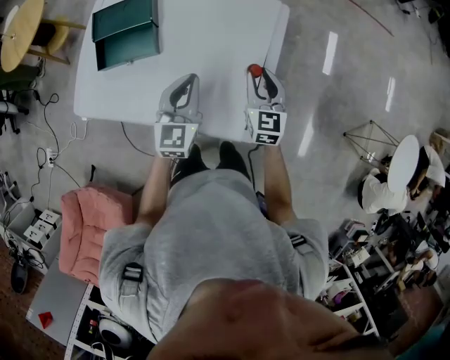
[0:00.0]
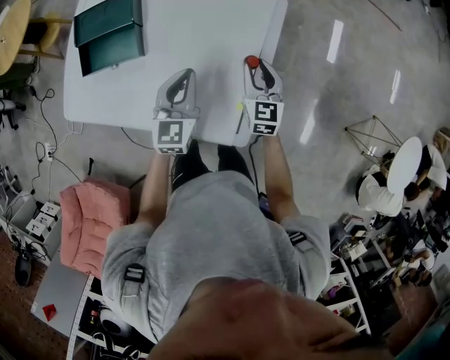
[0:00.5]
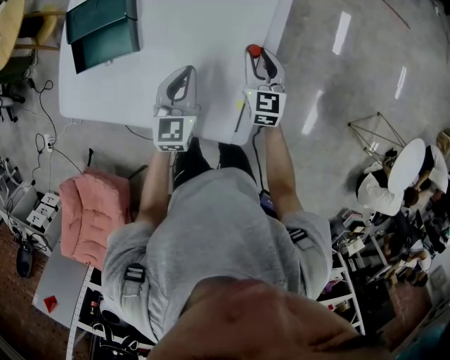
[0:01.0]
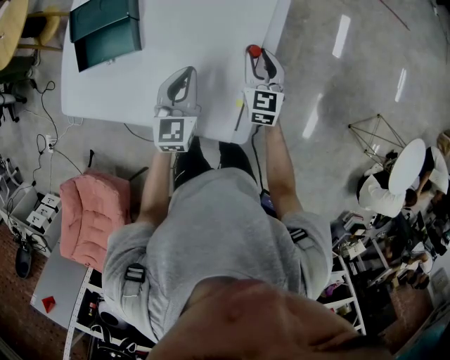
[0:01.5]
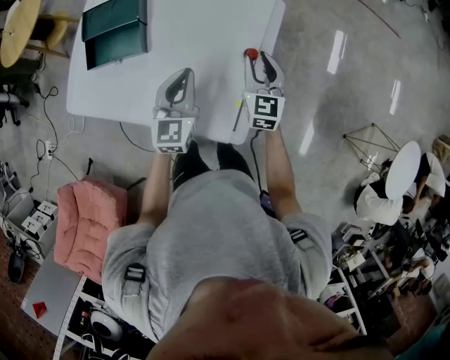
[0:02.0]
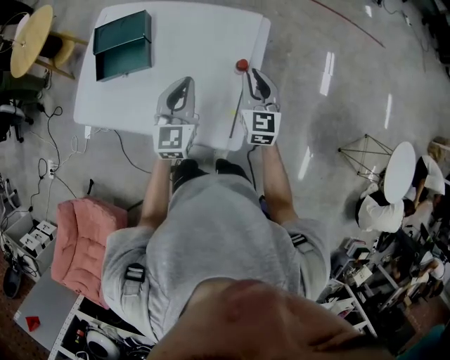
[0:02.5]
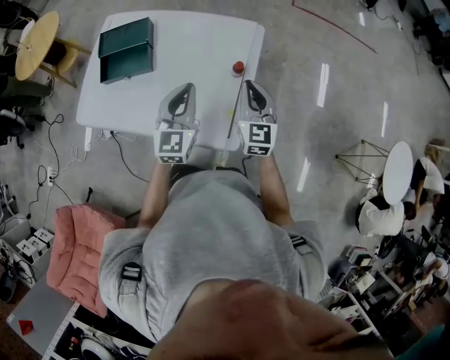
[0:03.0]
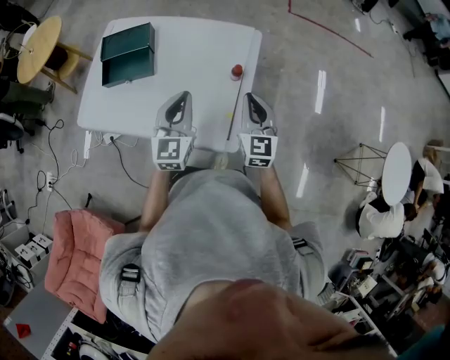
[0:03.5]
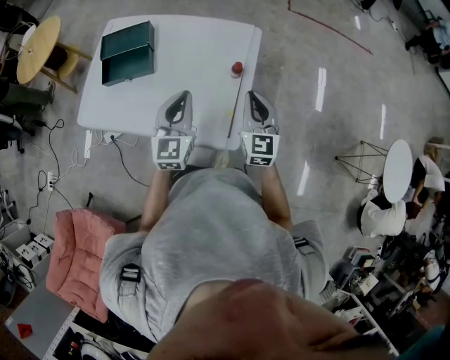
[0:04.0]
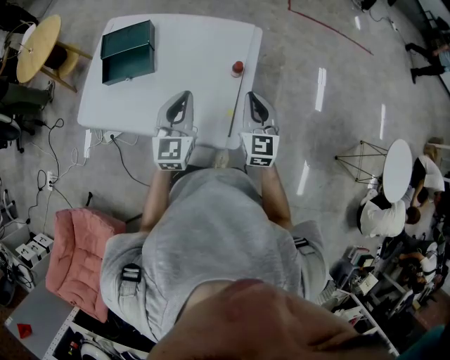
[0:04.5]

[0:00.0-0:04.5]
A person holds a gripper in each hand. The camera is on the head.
0.0 to 2.0 s: The right gripper travels forward by roughly 5 cm, and reaches approximately 10 cm downward, then returns.
2.0 to 4.5 s: Both grippers move backward and upward, about 15 cm. The right gripper closes its fingers.

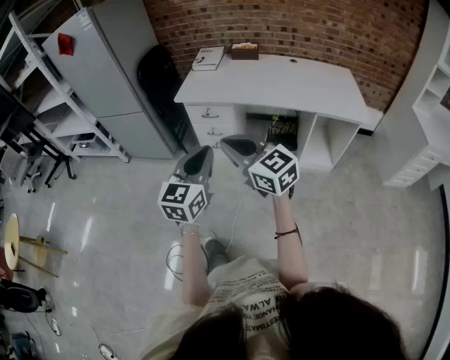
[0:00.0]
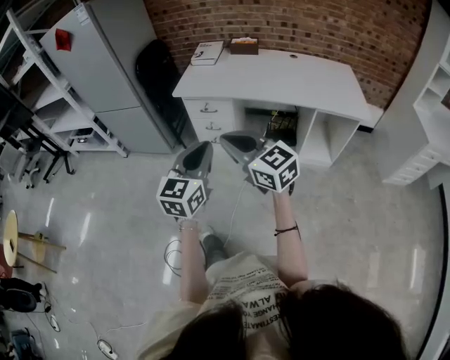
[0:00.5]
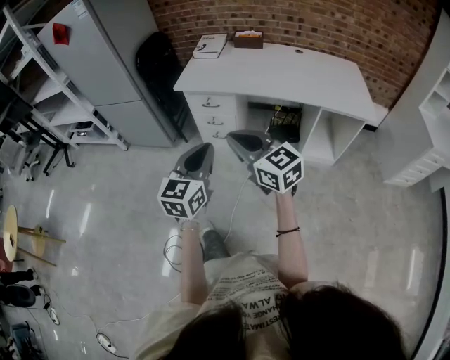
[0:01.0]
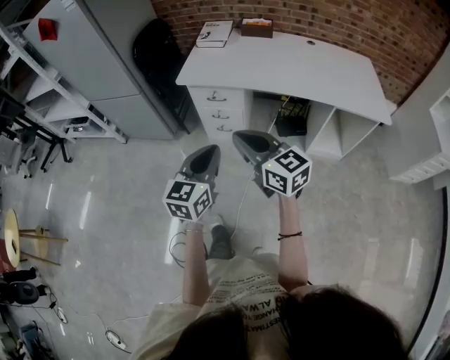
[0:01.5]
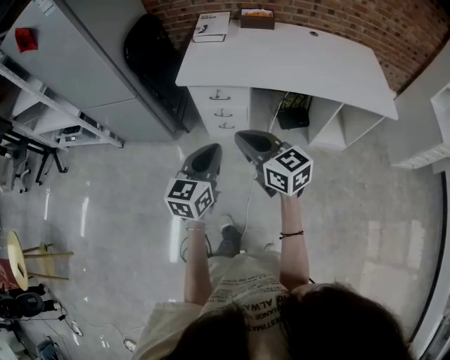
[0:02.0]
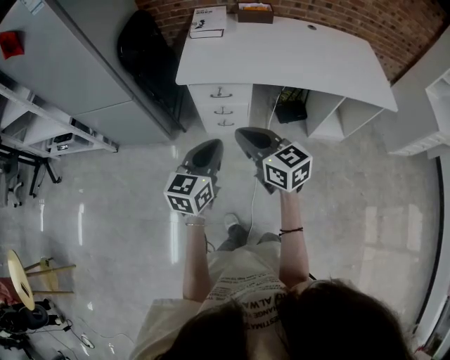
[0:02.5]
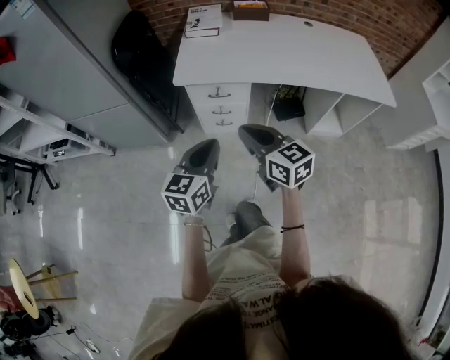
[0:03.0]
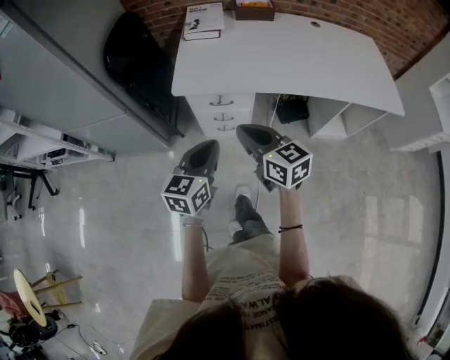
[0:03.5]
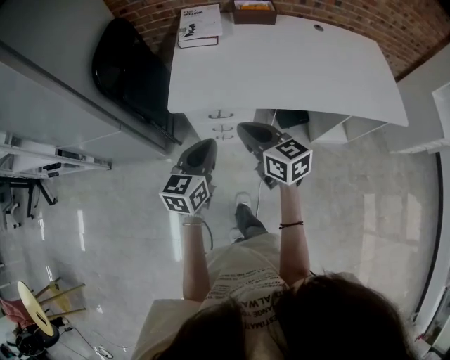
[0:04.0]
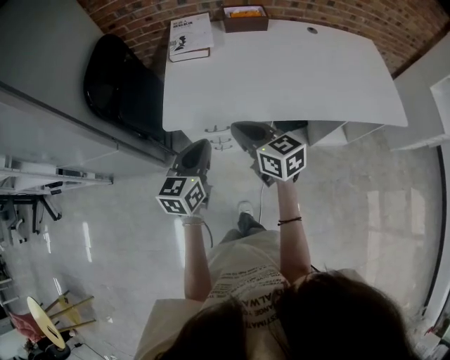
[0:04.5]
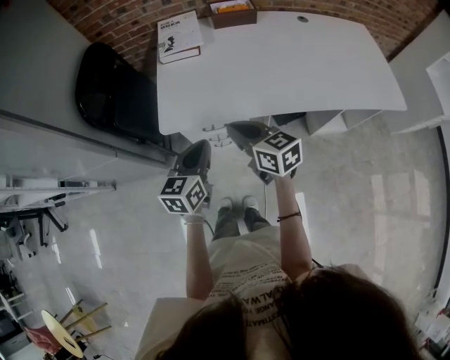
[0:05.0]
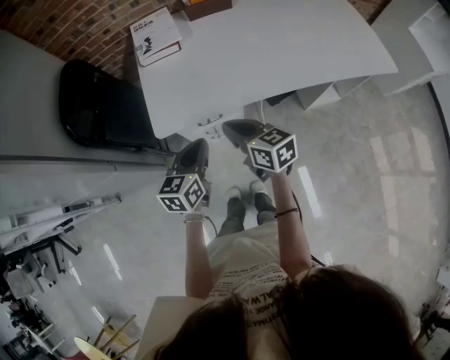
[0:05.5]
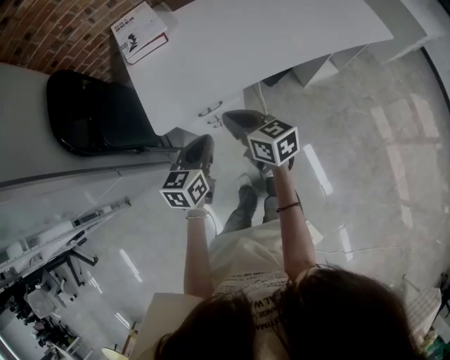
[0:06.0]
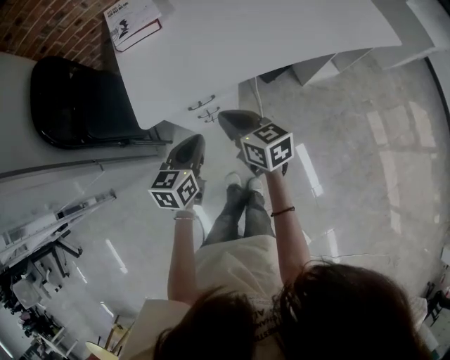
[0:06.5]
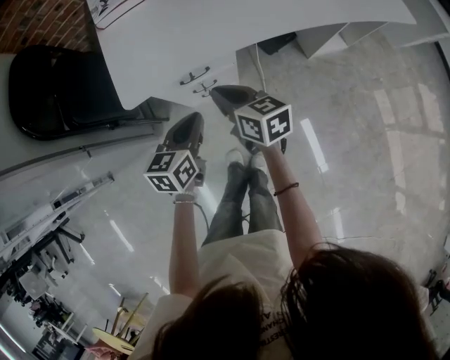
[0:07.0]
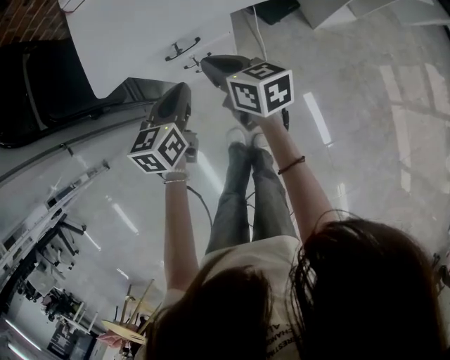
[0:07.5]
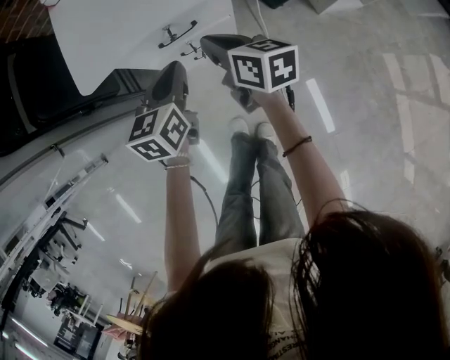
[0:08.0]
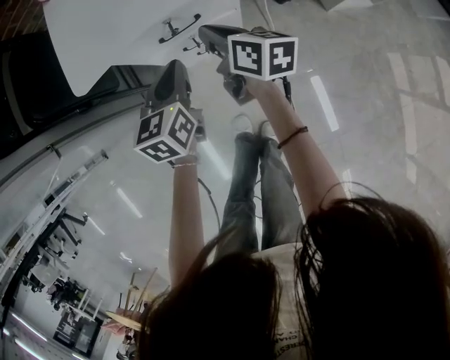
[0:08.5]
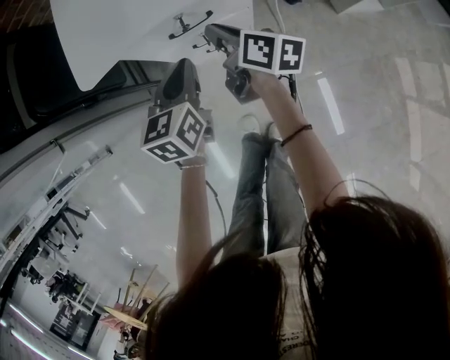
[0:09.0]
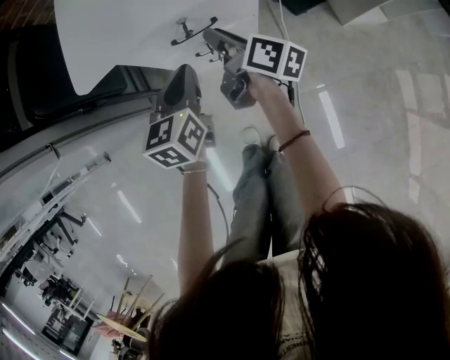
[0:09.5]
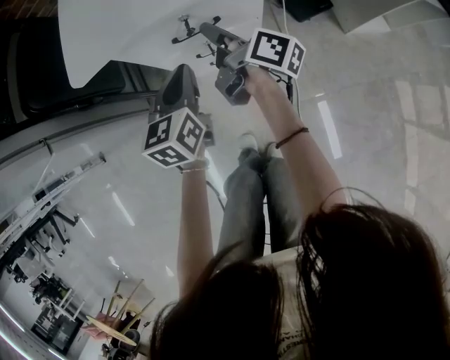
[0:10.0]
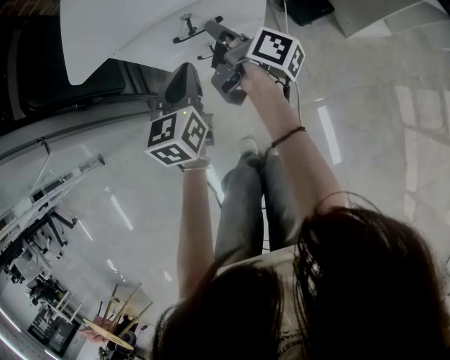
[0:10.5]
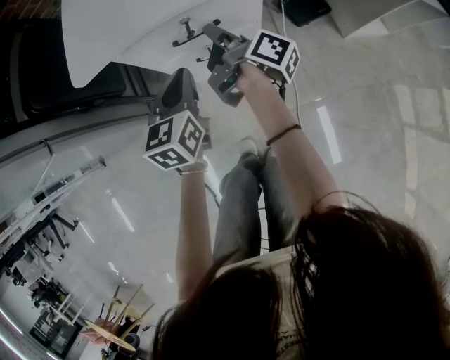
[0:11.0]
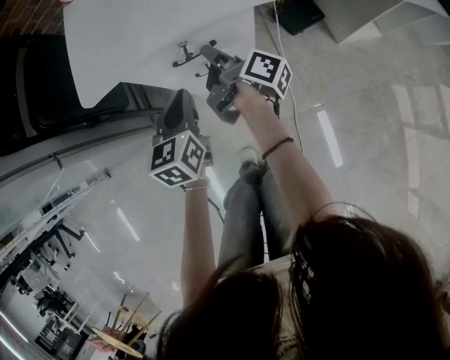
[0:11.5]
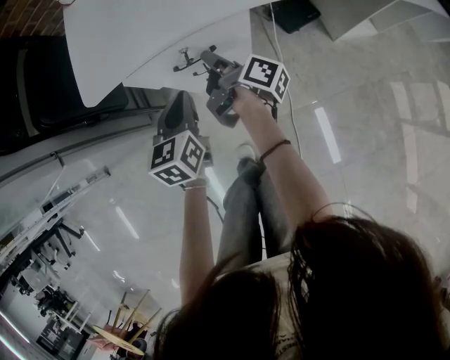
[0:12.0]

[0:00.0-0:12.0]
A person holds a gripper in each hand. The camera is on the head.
0.0 to 2.0 s: The right gripper heads forward, covering roughly 20 cm; the left gripper heads forward and downward, covering about 25 cm.
2.0 to 4.0 s: Both grippers move forward, roughly 25 cm.
4.0 to 6.0 s: Both grippers move downward and forward, approximately 10 cm. The right gripper swivels some 20 degrees, while the left gripper swivels roughly 20 degrees.
6.0 to 8.0 s: The two grippers go about 20 cm downward.
8.0 to 10.0 s: The right gripper is displaced downward and forward by roughly 10 cm, turns by some 40 degrees, and opens up. Meanwhile the left gripper heads downward, covering some 5 cm.
10.0 to 12.0 s: There are only small adjustments of the grippers.

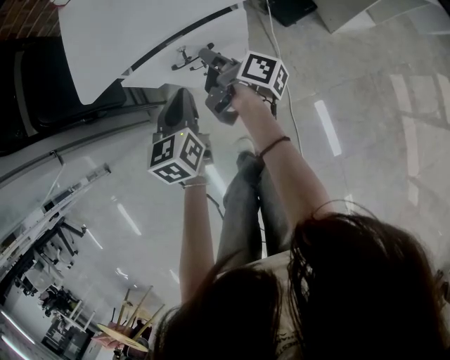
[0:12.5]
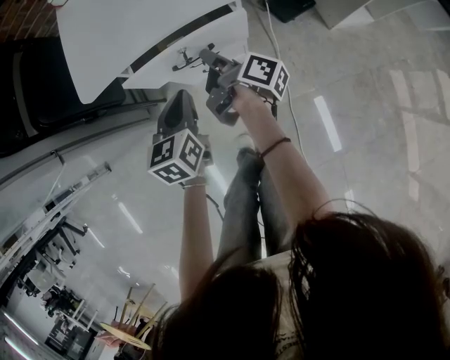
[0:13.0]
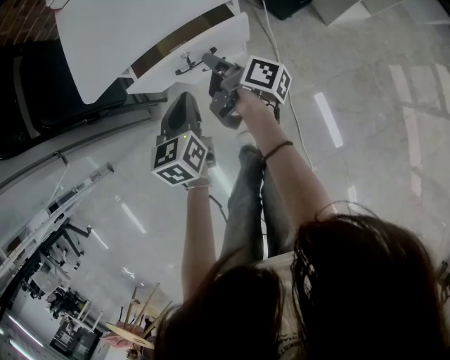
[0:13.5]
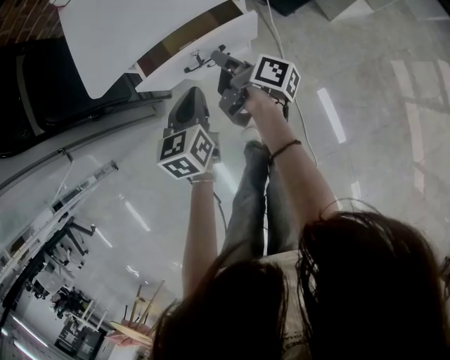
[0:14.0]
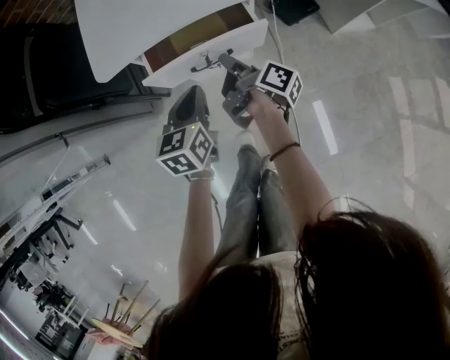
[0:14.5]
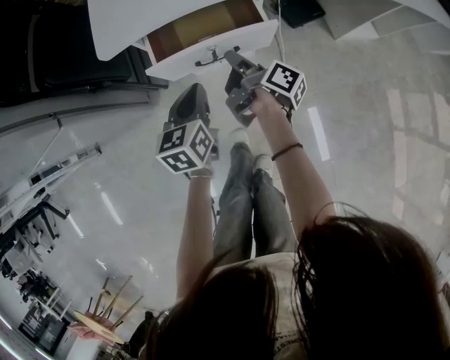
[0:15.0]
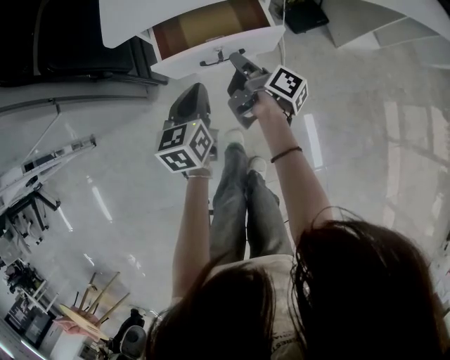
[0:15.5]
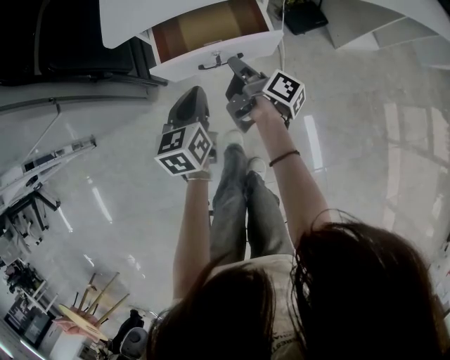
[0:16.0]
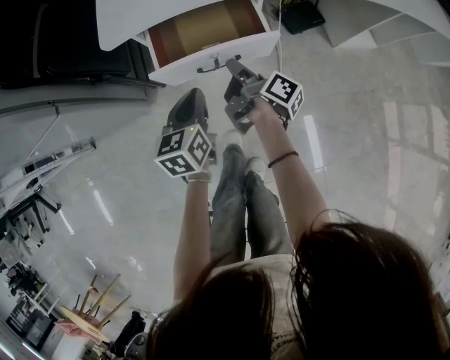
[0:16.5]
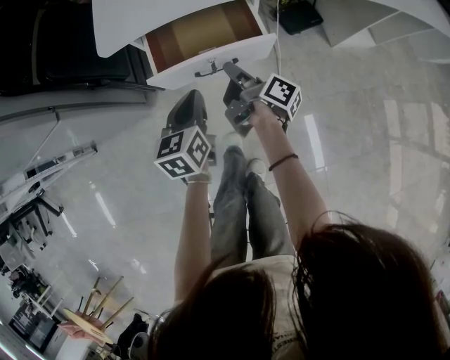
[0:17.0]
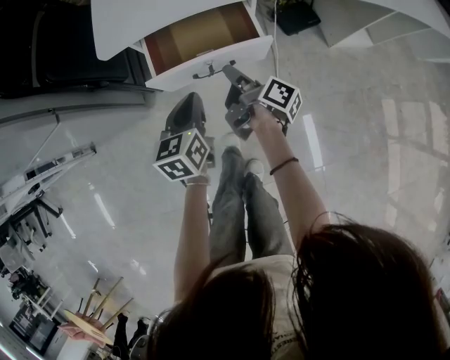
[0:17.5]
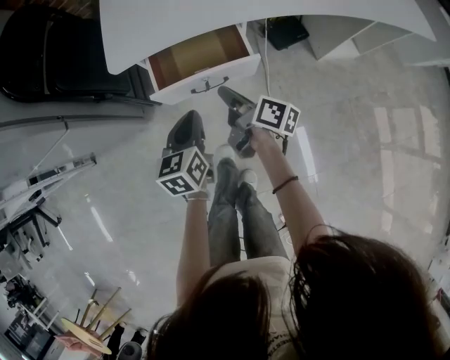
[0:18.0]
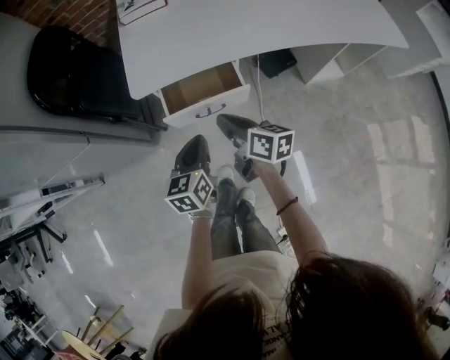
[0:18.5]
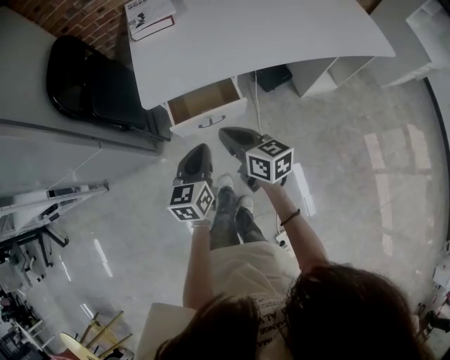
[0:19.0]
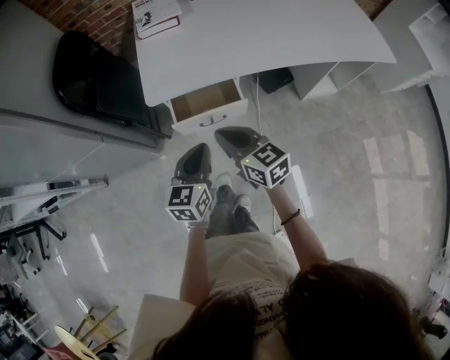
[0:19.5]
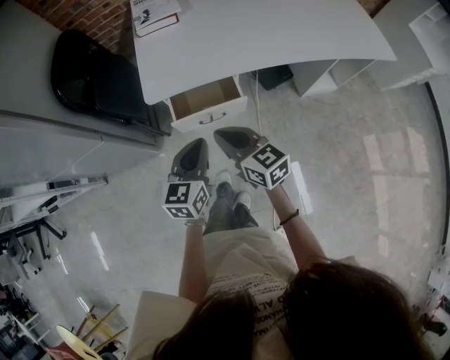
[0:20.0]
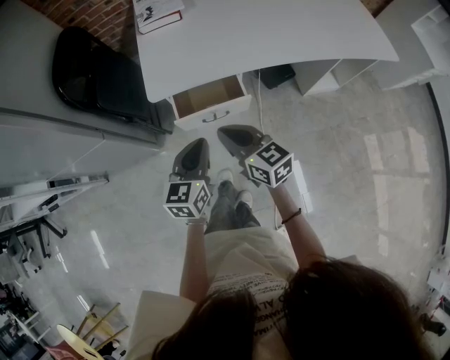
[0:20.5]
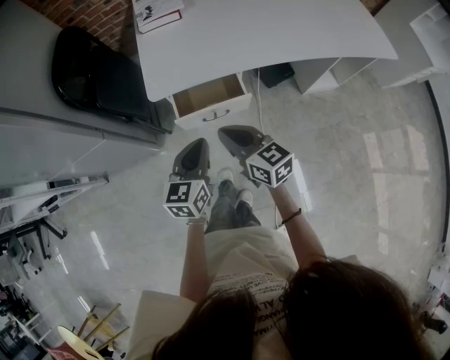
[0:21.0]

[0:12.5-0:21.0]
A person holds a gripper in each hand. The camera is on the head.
12.5 to 14.5 s: The right gripper travels backward by about 5 cm.
14.5 to 16.5 s: There are only small adjustments of the grippers.
16.5 to 19.0 s: The two grippers go some 25 cm upward. The right gripper rotates around the line of its fingers by some 60 degrees, counterclockwise from behind.
19.0 to 21.0 s: The grippers make only small movements.

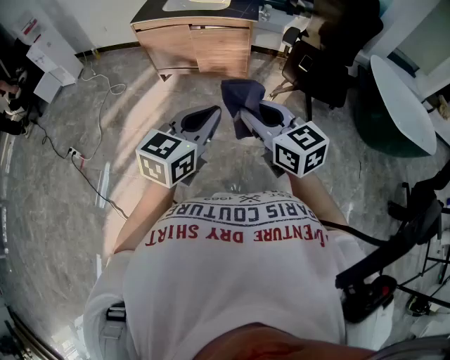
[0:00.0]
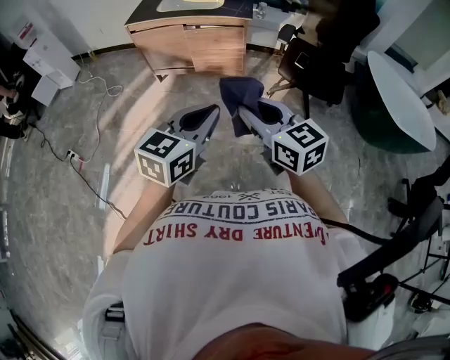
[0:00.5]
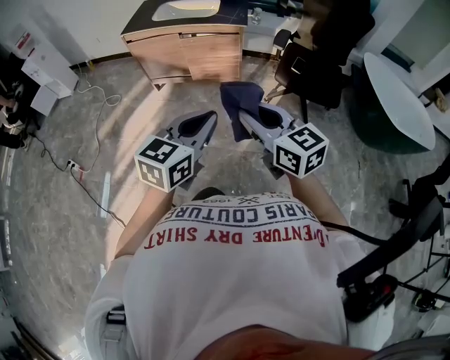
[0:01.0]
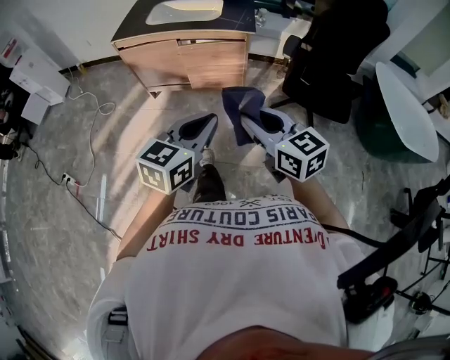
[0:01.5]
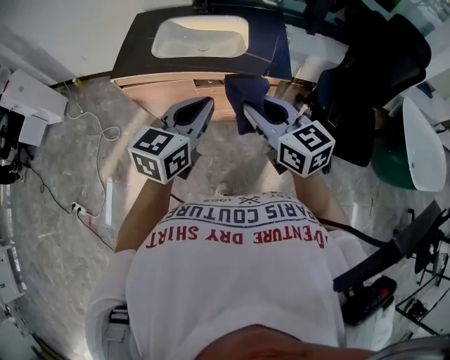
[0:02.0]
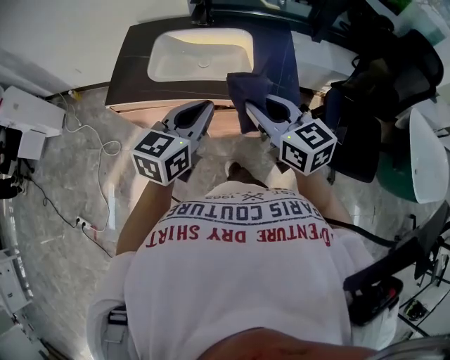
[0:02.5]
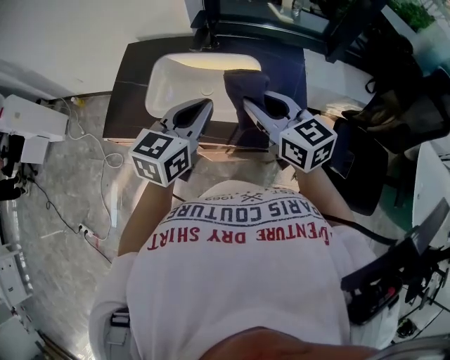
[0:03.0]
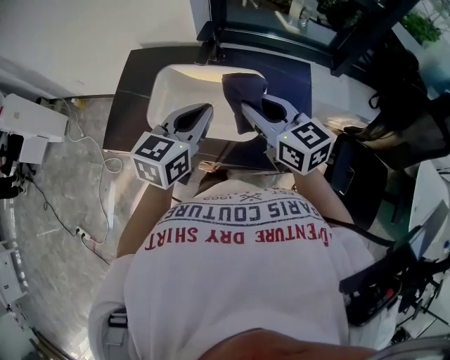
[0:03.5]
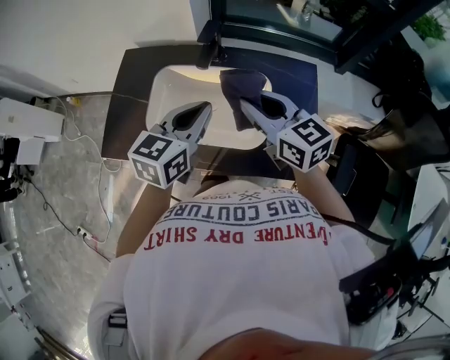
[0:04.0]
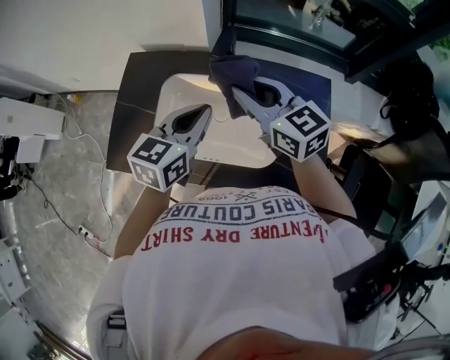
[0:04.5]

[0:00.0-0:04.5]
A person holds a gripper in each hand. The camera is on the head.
0.0 to 2.0 s: Both grippers are carried forward, roughly 60 cm.
2.0 to 4.5 s: Both grippers are carried forward, some 50 cm.
